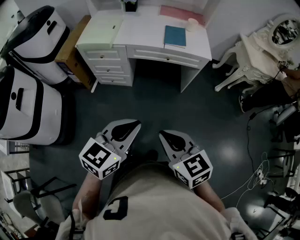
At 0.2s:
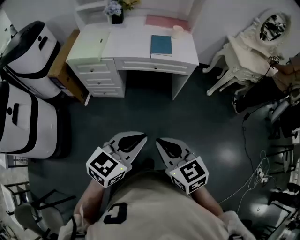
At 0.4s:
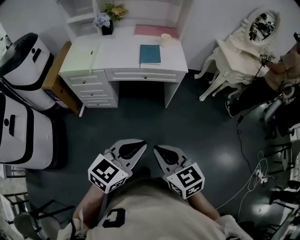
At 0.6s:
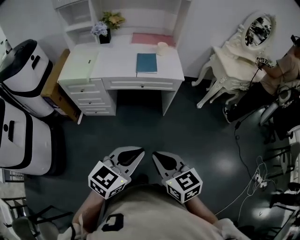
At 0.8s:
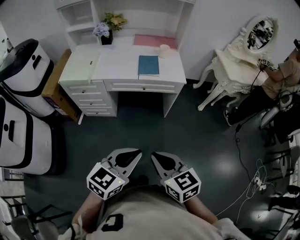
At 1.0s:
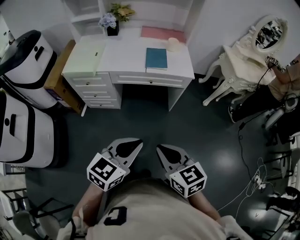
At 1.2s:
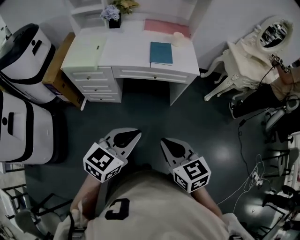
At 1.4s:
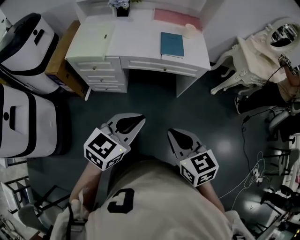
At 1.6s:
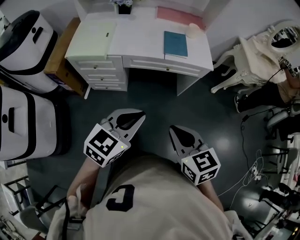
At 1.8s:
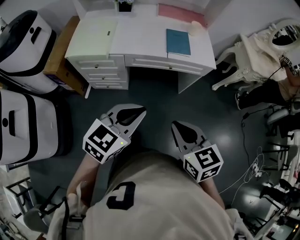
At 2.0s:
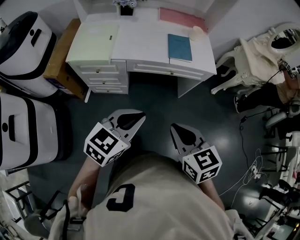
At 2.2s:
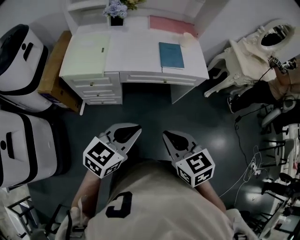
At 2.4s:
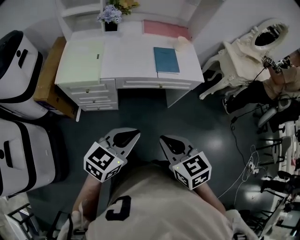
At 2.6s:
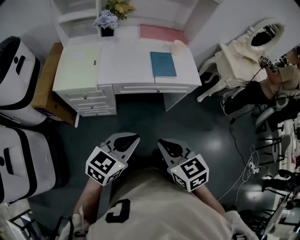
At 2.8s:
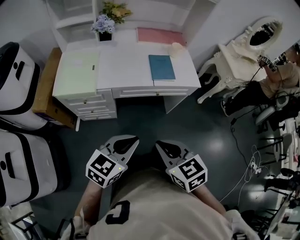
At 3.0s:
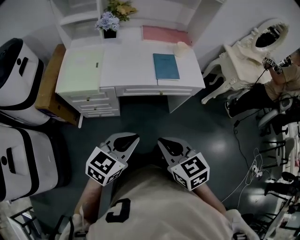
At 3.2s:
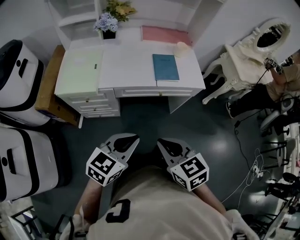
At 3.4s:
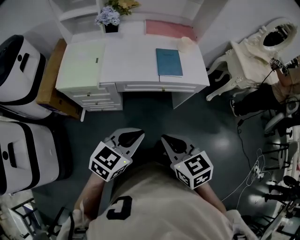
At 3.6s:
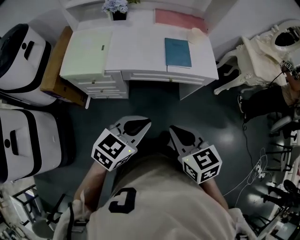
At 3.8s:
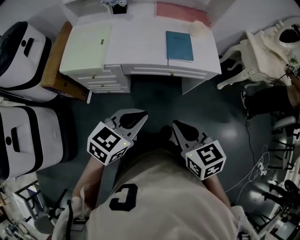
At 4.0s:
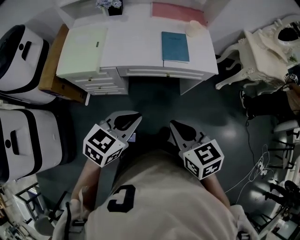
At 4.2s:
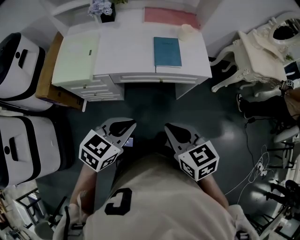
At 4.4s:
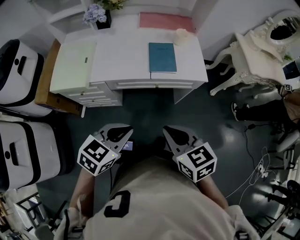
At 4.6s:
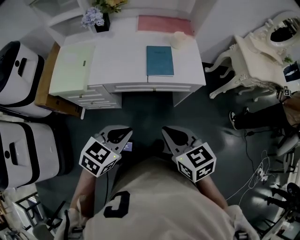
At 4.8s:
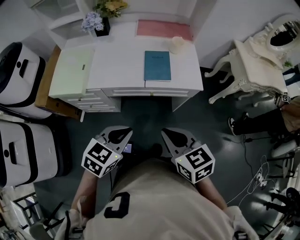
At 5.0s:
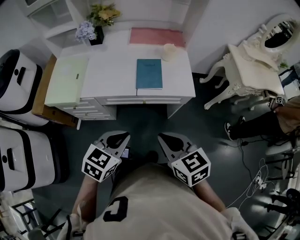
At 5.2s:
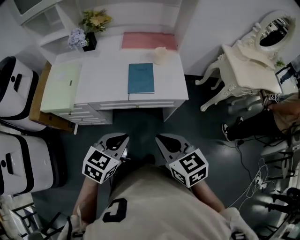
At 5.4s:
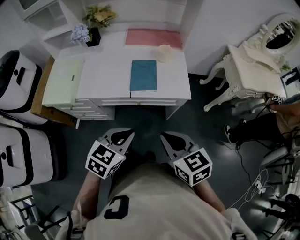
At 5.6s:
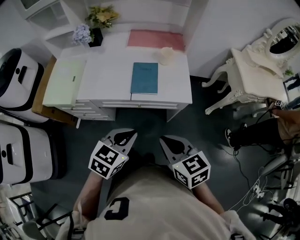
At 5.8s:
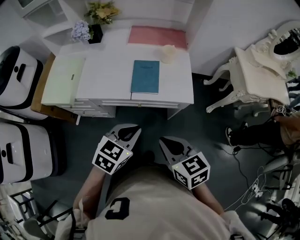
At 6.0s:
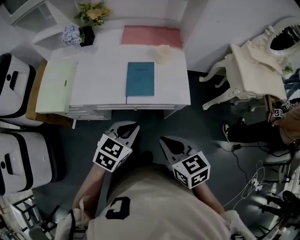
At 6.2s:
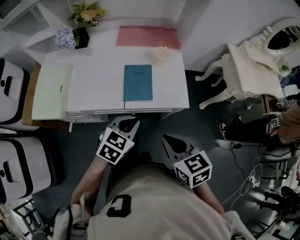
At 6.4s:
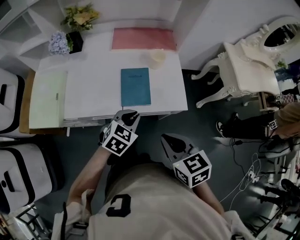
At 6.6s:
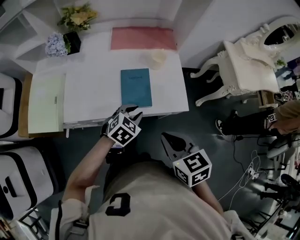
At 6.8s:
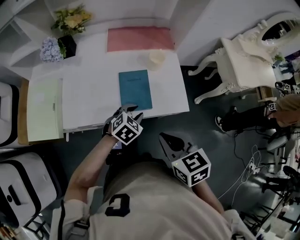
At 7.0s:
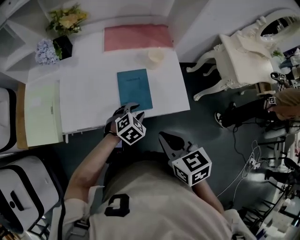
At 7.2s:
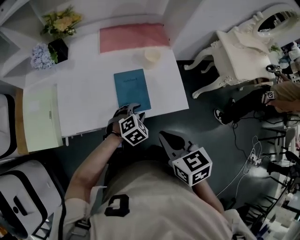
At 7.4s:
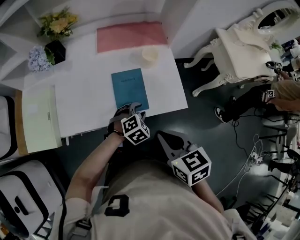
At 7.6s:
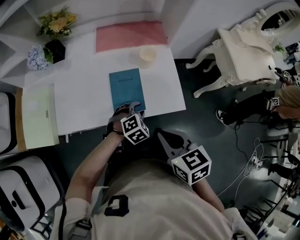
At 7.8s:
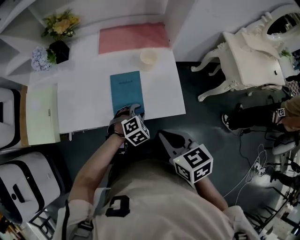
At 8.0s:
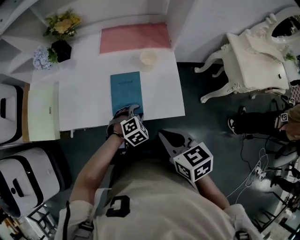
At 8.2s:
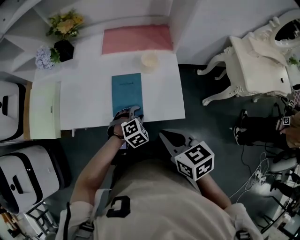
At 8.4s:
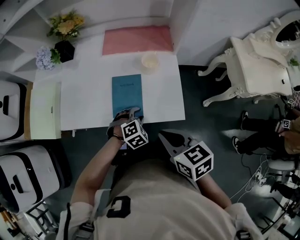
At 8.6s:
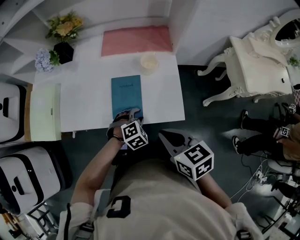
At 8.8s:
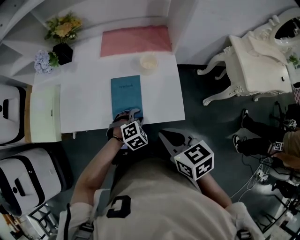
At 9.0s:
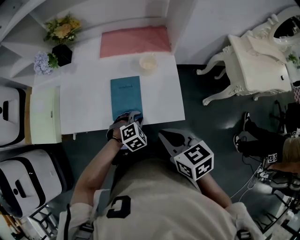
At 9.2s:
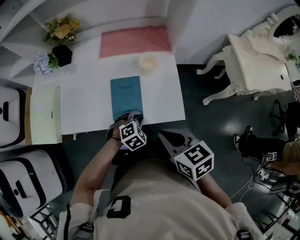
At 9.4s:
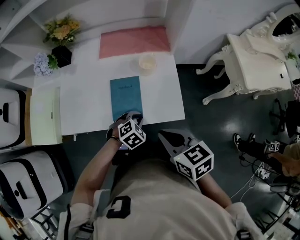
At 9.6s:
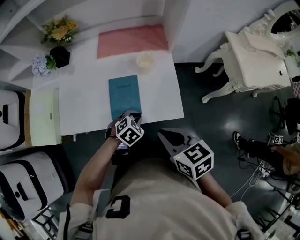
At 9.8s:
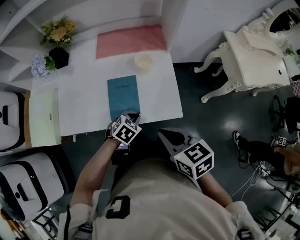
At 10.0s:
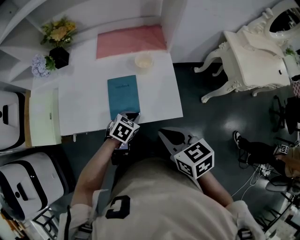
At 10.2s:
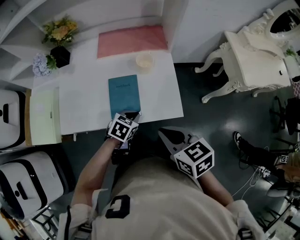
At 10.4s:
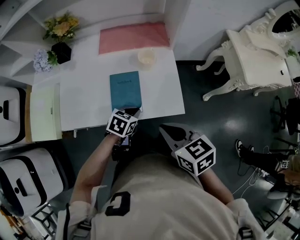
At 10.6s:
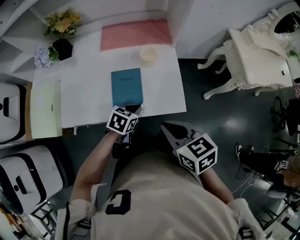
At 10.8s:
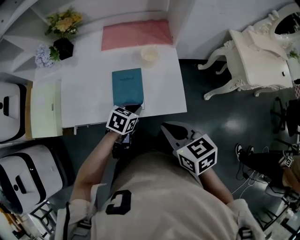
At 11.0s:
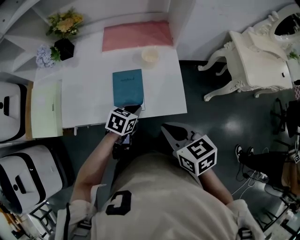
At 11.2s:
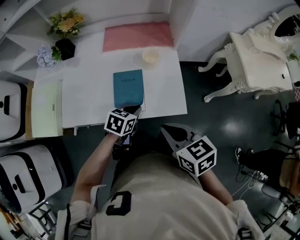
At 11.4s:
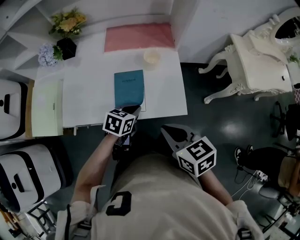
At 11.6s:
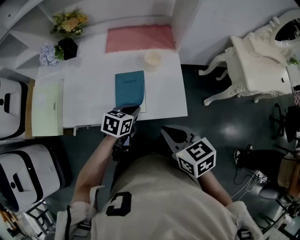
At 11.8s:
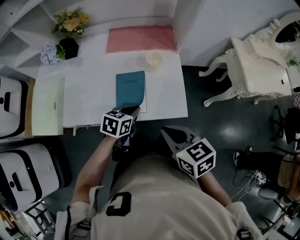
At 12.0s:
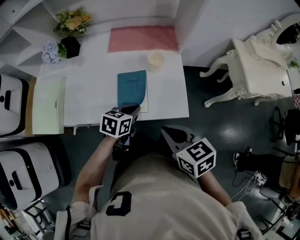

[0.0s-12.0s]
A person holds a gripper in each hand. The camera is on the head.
0.0s to 1.6s: Both grippers travel together forward, approximately 10 cm. The left gripper reaches roughly 10 cm to the right, then returns.
1.6s to 3.0s: The left gripper ends up roughly 5 cm from where it was; the right gripper shifts about 10 cm to the left and forward.
3.0s to 4.4s: The right gripper goes approximately 10 cm to the right and forward; the left gripper is displaced to the right by approximately 5 cm.
4.4s to 6.0s: The left gripper shifts some 20 cm forward and to the right. The right gripper moves to the right and forward, approximately 15 cm.
6.0s to 7.6s: The right gripper moves forward, roughly 10 cm. The left gripper shifts some 25 cm downward and forward, swivels approximately 40 degrees, and opens.
7.6s to 9.0s: The right gripper ends up about 5 cm from where it was.
9.0s to 10.4s: The left gripper rotates around the line of its fingers by approximately 40 degrees, counterclockwise from behind.
10.4s to 12.0s: The left gripper is displaced upward by about 5 cm.

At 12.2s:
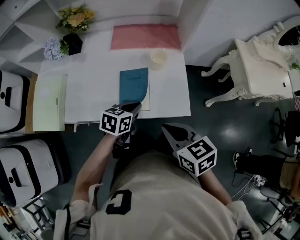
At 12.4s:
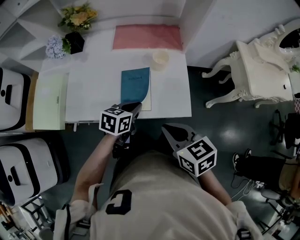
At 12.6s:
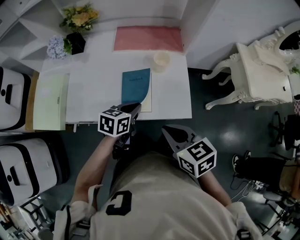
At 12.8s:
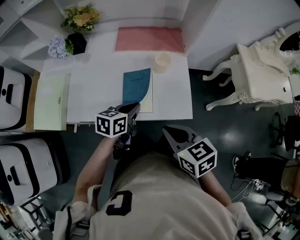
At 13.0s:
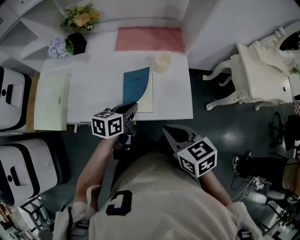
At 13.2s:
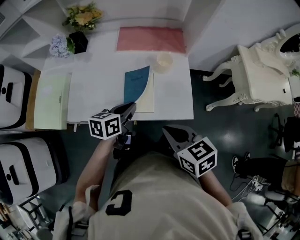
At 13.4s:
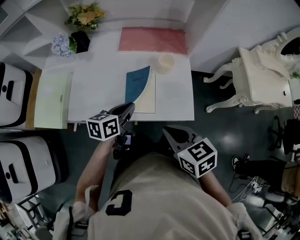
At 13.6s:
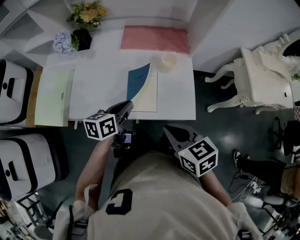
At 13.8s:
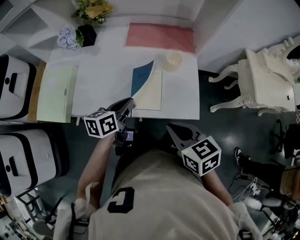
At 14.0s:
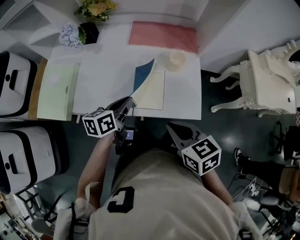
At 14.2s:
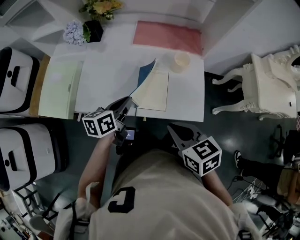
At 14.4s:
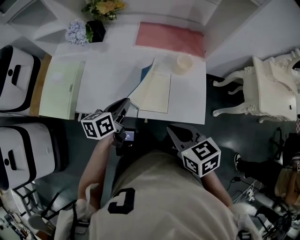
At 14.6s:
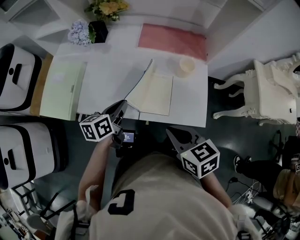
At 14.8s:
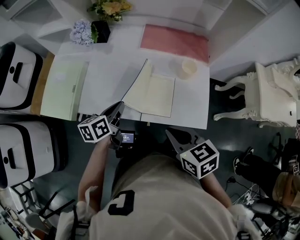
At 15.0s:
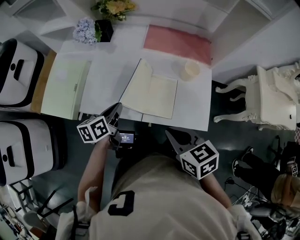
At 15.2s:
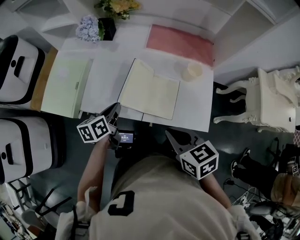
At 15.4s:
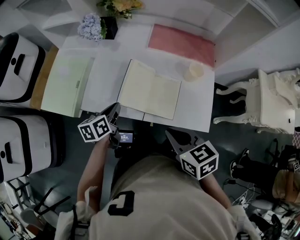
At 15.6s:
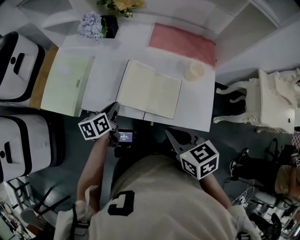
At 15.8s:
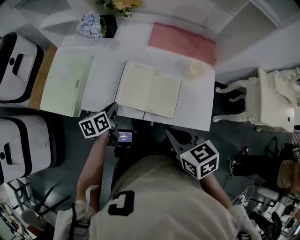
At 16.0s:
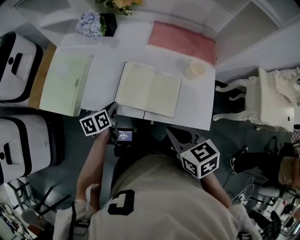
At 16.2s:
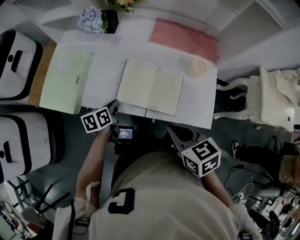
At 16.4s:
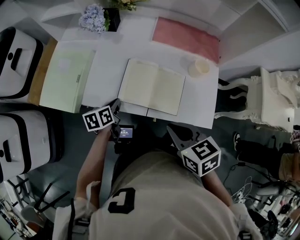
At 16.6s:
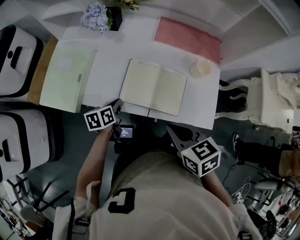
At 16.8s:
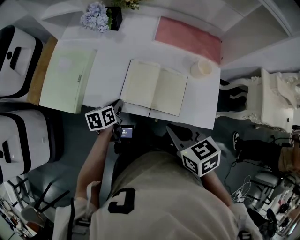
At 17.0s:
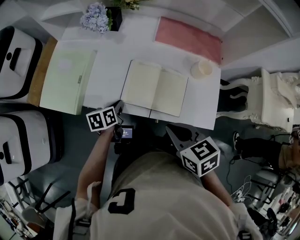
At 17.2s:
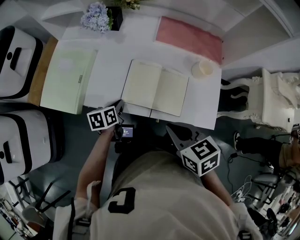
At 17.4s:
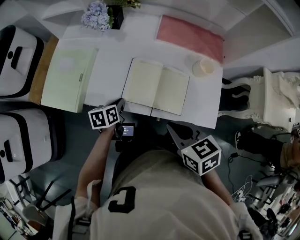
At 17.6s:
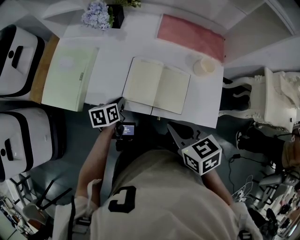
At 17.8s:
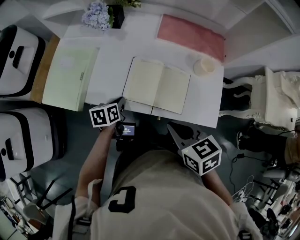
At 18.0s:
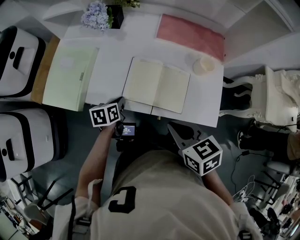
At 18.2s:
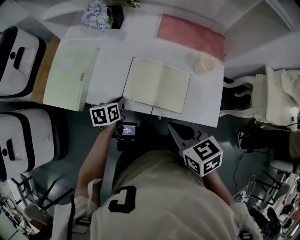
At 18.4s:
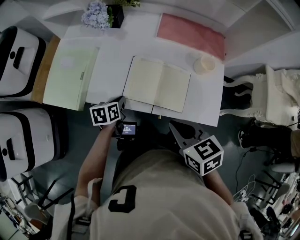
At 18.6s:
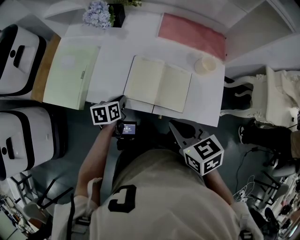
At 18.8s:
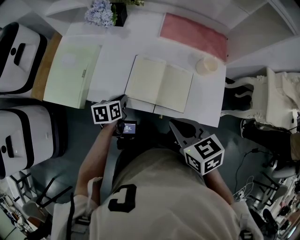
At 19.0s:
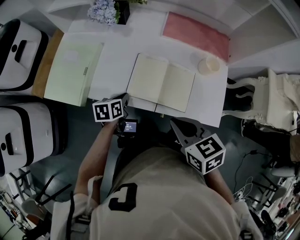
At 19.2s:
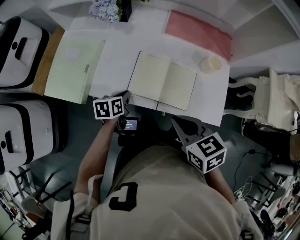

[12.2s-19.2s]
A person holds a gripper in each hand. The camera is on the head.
12.2s to 13.6s: The left gripper shifts approximately 5 cm to the left, and rotates approximately 20 degrees.
13.6s to 15.0s: The left gripper goes approximately 15 cm to the left, and changes its angle by roughly 20 degrees; the right gripper heads to the left, covering about 5 cm.
15.0s to 16.4s: The left gripper moves downward, roughly 10 cm.
16.4s to 17.8s: The grippers move only a little.
17.8s to 19.2s: Both grippers stay about where they are.

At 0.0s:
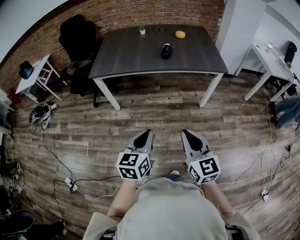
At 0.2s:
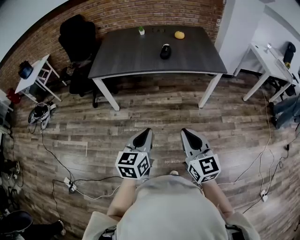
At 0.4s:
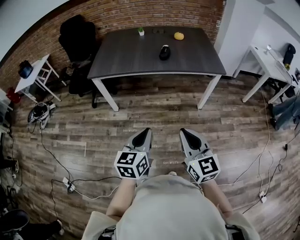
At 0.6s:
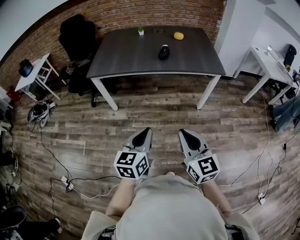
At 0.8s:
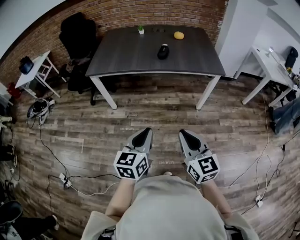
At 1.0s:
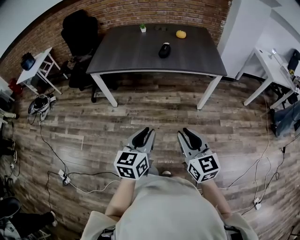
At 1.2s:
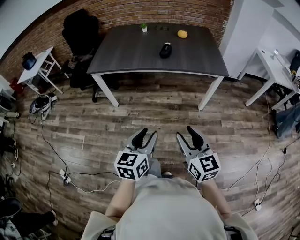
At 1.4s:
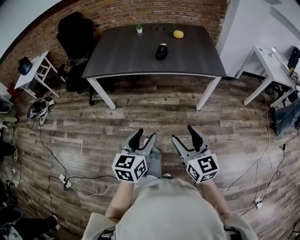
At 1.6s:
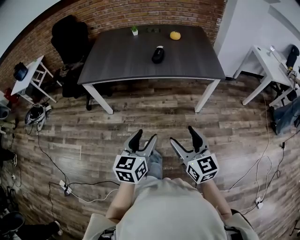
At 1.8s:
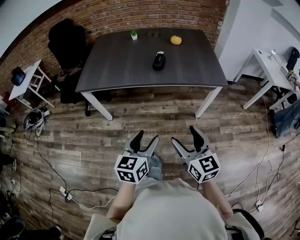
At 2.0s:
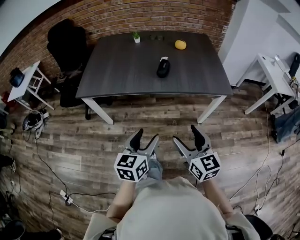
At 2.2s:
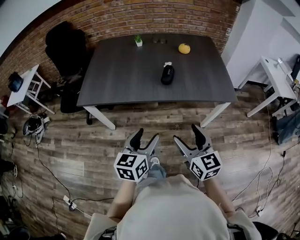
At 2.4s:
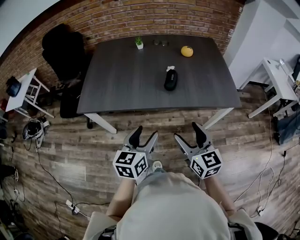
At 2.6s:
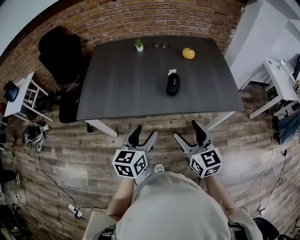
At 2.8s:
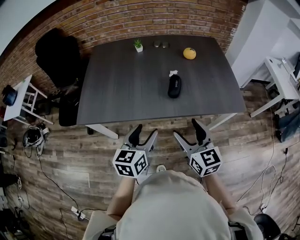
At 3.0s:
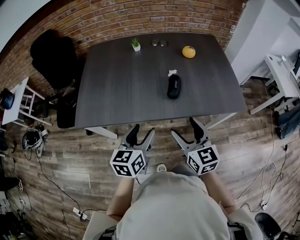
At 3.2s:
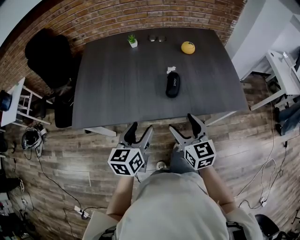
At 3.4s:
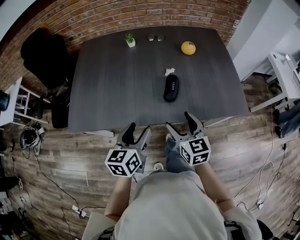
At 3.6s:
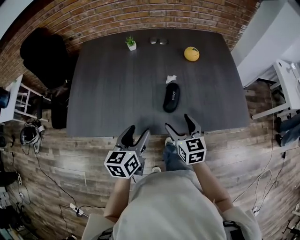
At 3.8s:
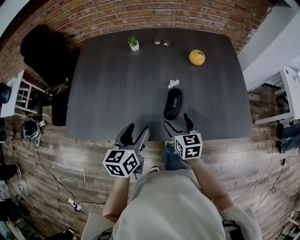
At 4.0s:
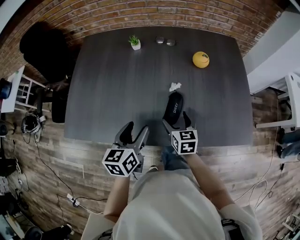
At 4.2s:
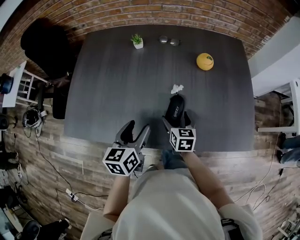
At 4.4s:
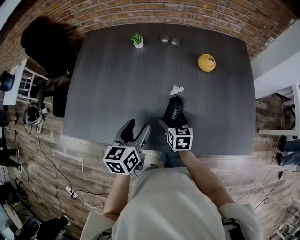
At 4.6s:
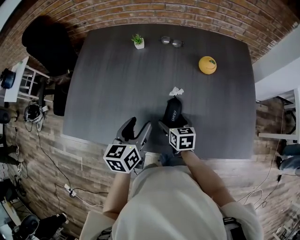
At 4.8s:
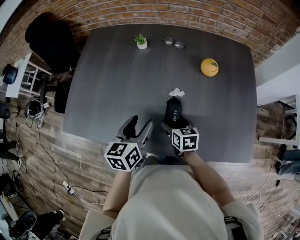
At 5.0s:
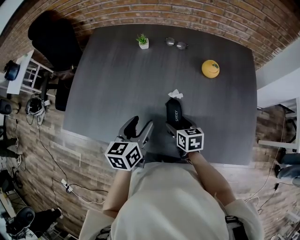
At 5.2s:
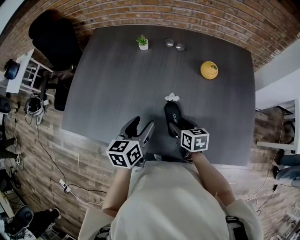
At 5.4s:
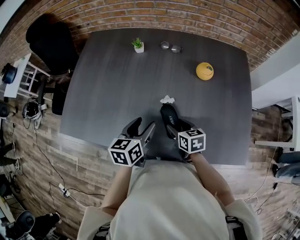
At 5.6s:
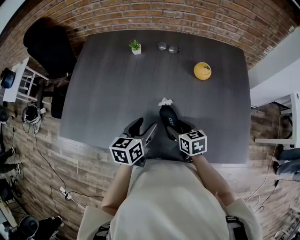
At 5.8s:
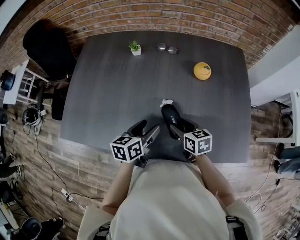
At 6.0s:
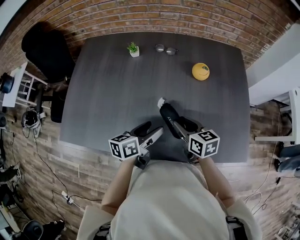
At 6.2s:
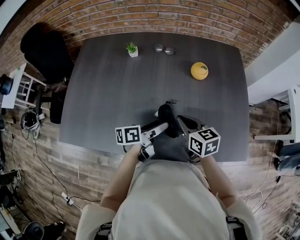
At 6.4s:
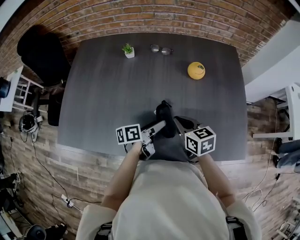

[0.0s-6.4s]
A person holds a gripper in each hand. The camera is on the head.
0.0s to 1.6s: Both grippers move forward and to the right, approximately 10 cm. The left gripper opens its fingers. Meanwhile the right gripper opens up.
1.6s to 3.2s: The pair of grippers is taken forward, approximately 40 cm.
3.2s to 4.8s: The right gripper shifts approximately 30 cm forward and downward, and turns by about 30 degrees; the left gripper shifts about 20 cm forward.
4.8s to 6.4s: The right gripper shifts about 10 cm upward, and closes. Meanwhile the left gripper travels to the right and downward by roughly 15 cm, and swivels roughly 50 degrees.
